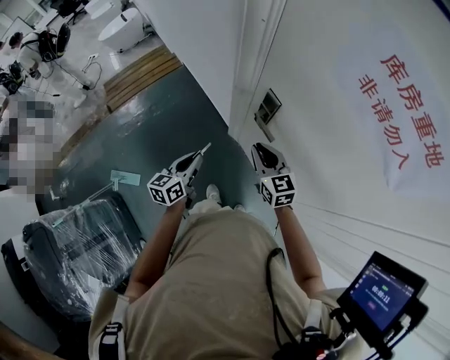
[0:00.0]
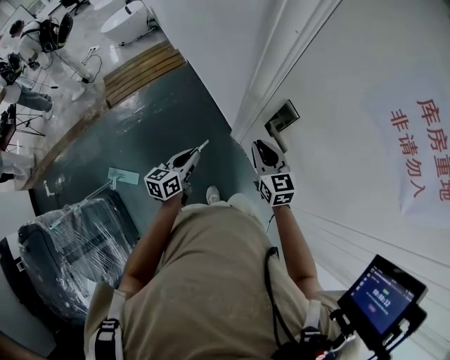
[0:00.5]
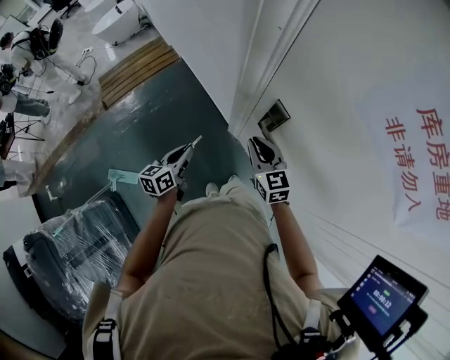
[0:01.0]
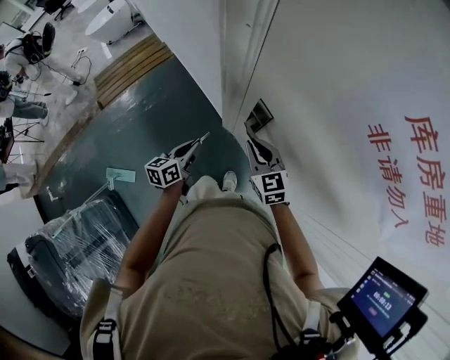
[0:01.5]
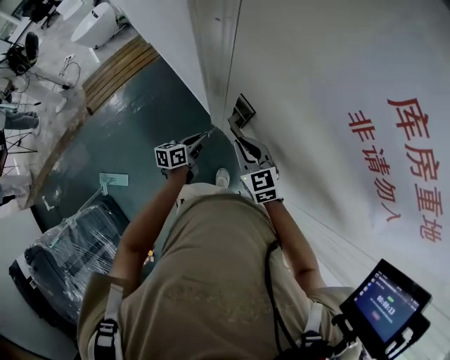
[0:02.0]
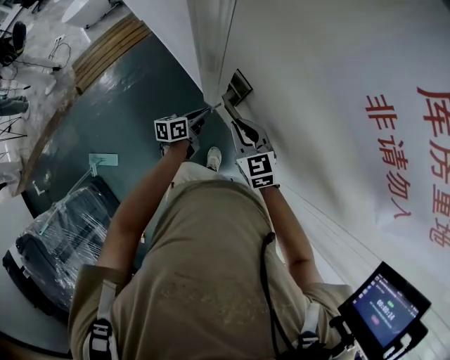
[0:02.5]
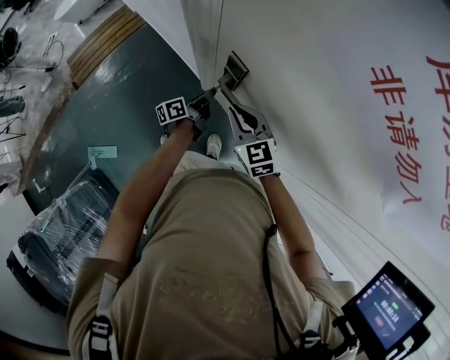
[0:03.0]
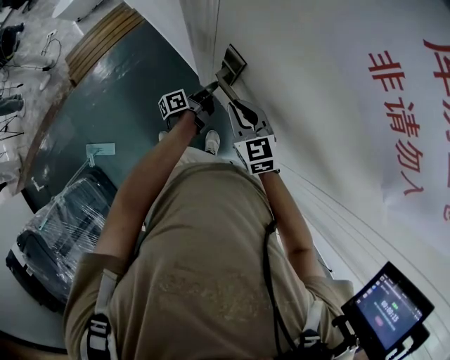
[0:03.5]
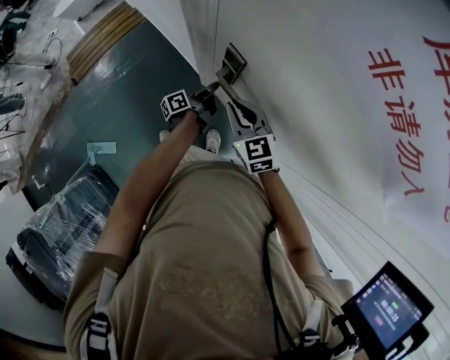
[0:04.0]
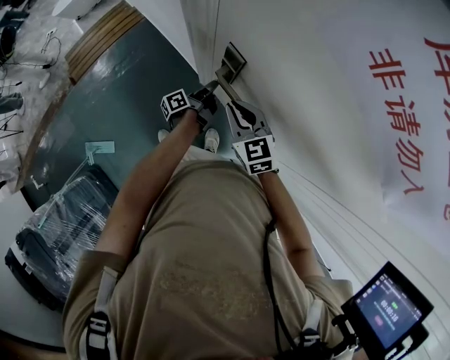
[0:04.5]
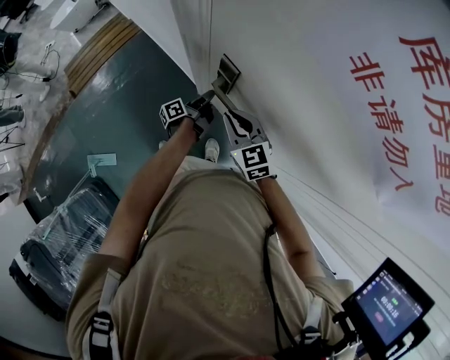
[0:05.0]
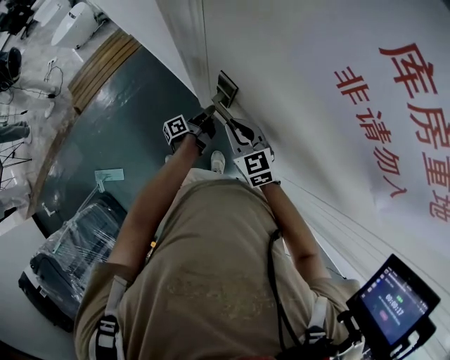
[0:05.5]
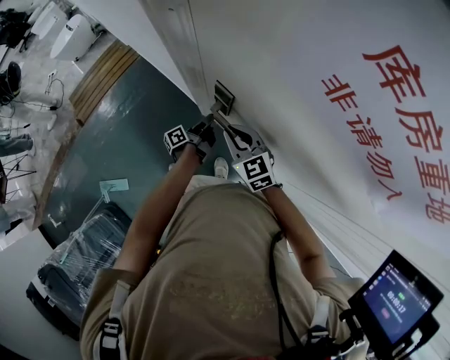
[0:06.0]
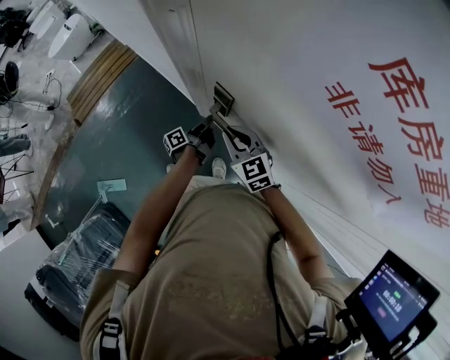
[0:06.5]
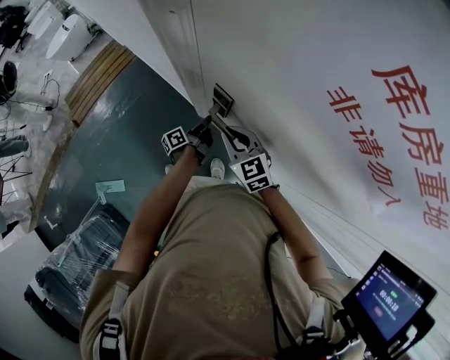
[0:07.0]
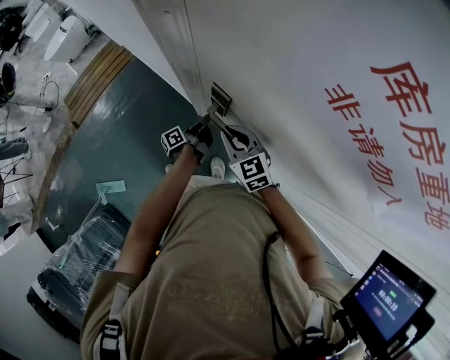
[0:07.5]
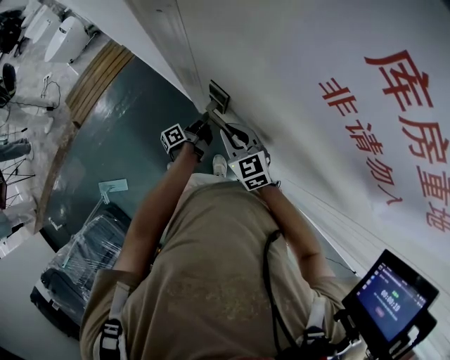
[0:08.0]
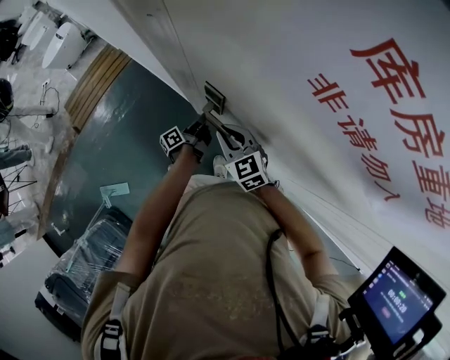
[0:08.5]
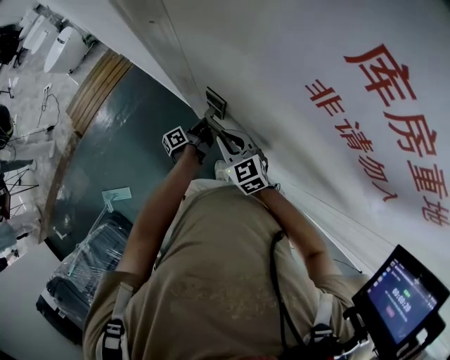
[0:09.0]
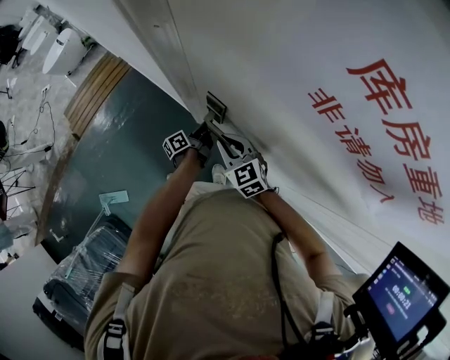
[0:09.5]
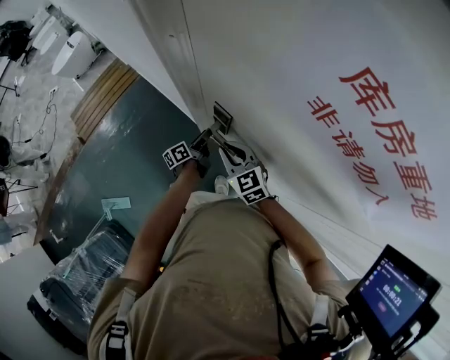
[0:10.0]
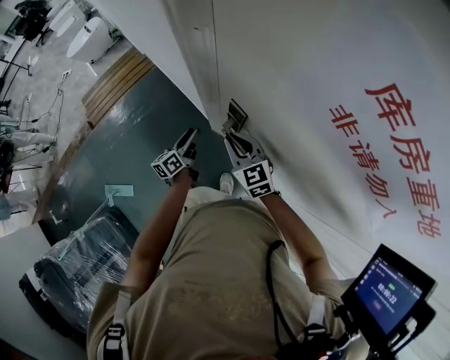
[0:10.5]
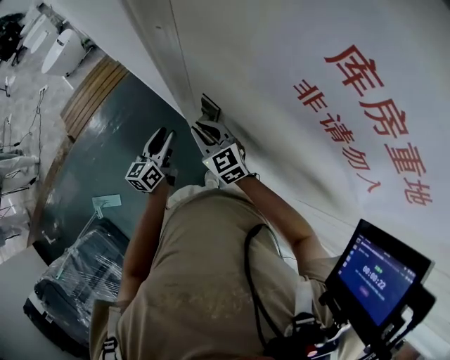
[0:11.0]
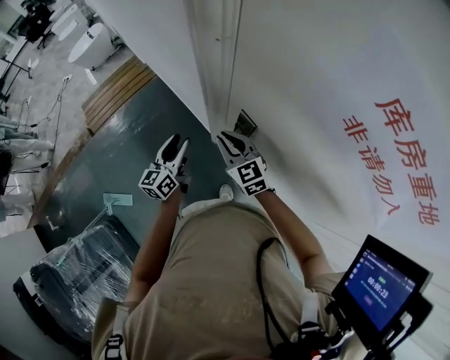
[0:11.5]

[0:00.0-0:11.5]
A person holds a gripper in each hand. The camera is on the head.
0:00.0 to 0:02.0: The right gripper goes some 5 cm forward, and moves some 5 cm to the left and comes back. The left gripper moves forward, downward and to the right, some 20 cm, and rotates roughly 20 degrees.
0:02.0 to 0:04.0: The left gripper is displaced to the right by some 5 cm, and rotates approximately 40 degrees.
0:04.0 to 0:06.0: The grippers make only small movements.
0:06.0 to 0:07.5: Both grippers stay put.
0:07.5 to 0:09.5: The grippers move only a little.
0:09.5 to 0:11.5: The left gripper goes about 25 cm upward and to the left, rotates around the line of its fingers by some 50 degrees, clockwise from behind, and opens. The right gripper heads to the left and upward, covering about 10 cm.

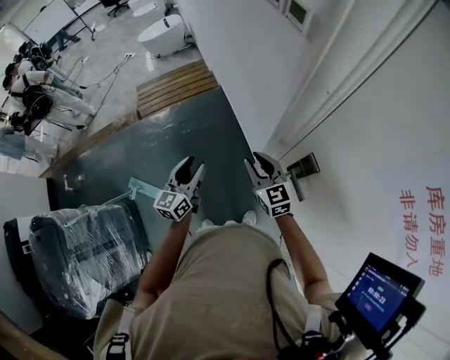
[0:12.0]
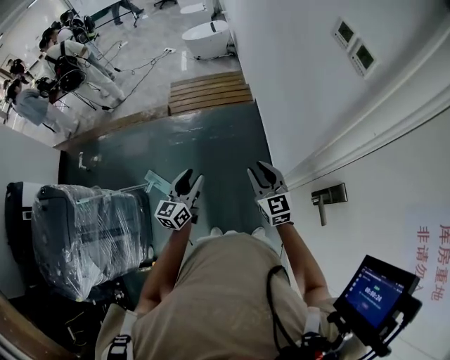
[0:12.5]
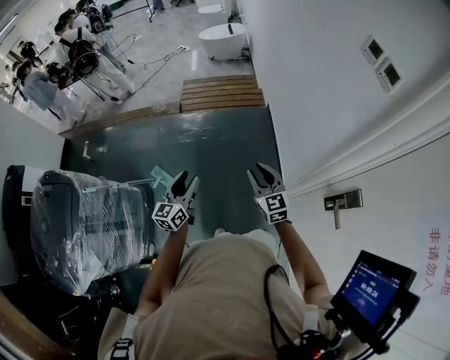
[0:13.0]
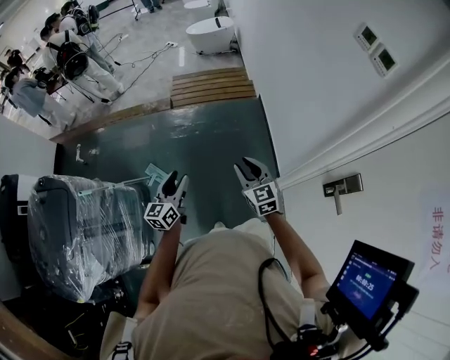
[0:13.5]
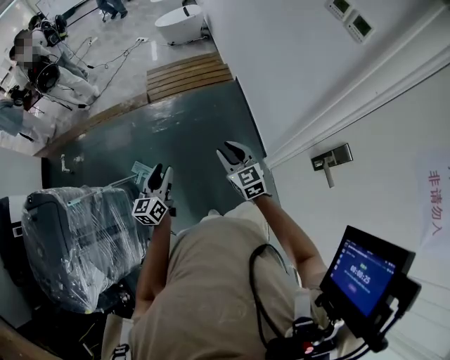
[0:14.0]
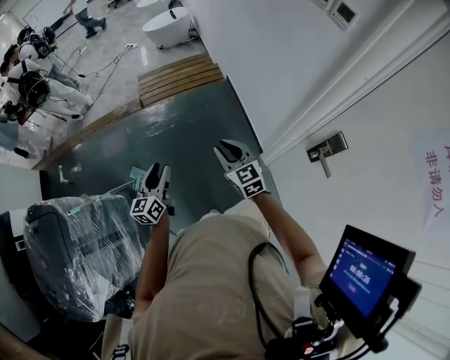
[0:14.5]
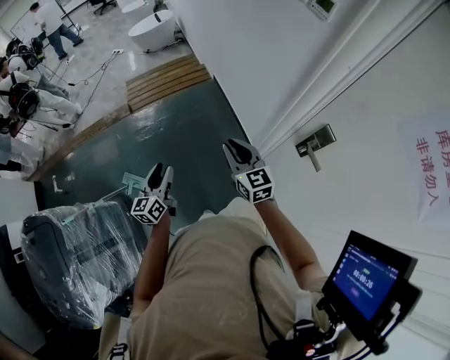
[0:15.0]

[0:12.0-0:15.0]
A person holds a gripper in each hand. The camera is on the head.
0:12.0 to 0:13.5: Both grippers travel together to the left, approximately 30 cm. The left gripper turns by about 20 degrees.
0:13.5 to 0:15.0: The grippers both shift to the right by some 10 cm.

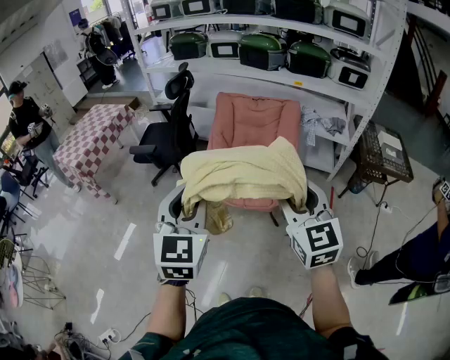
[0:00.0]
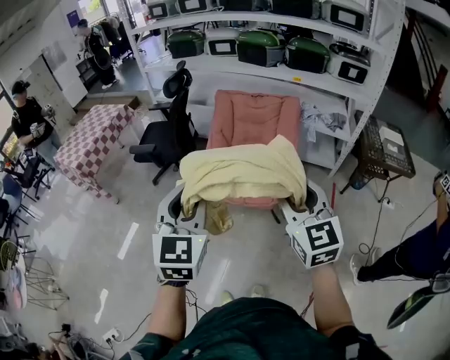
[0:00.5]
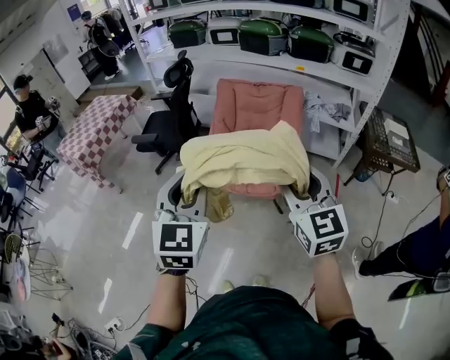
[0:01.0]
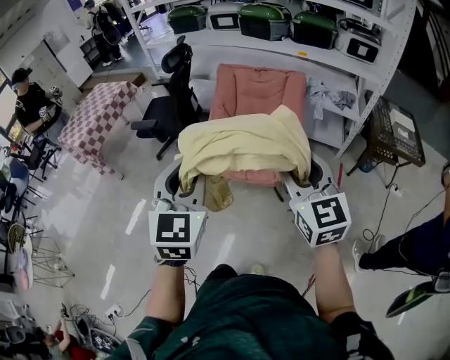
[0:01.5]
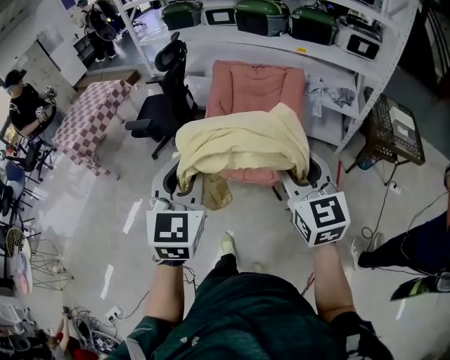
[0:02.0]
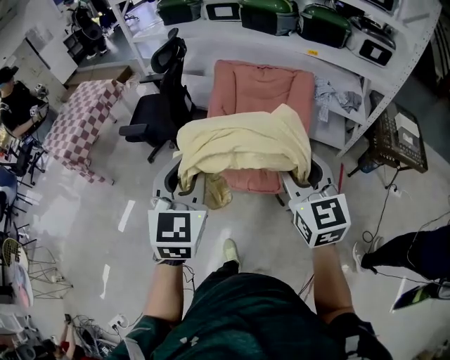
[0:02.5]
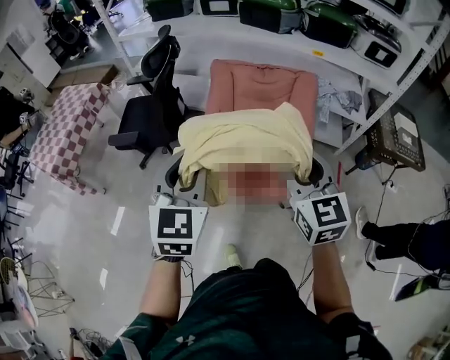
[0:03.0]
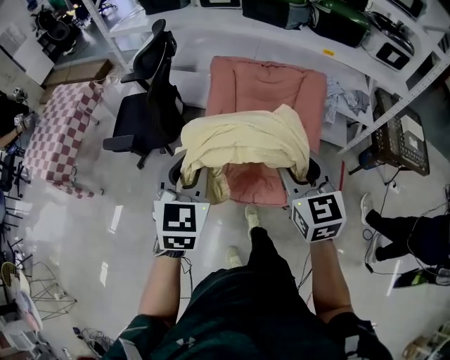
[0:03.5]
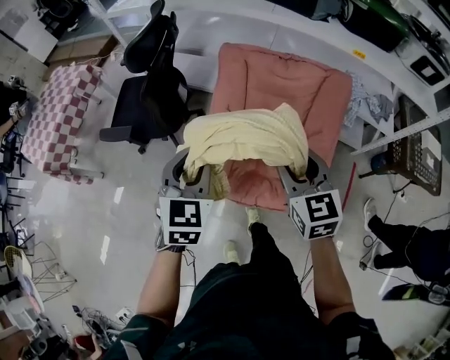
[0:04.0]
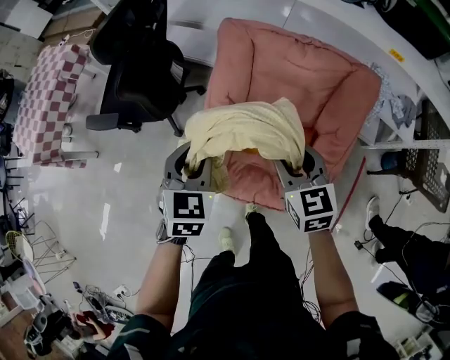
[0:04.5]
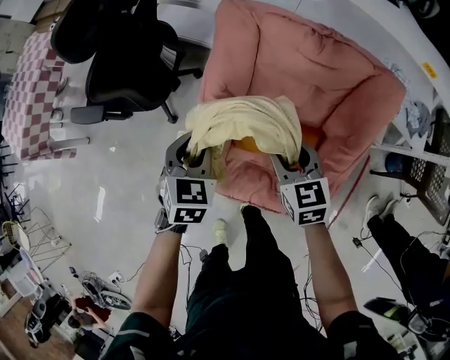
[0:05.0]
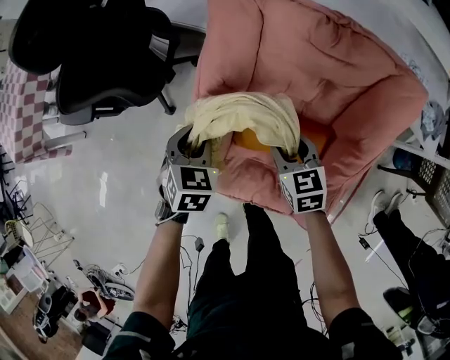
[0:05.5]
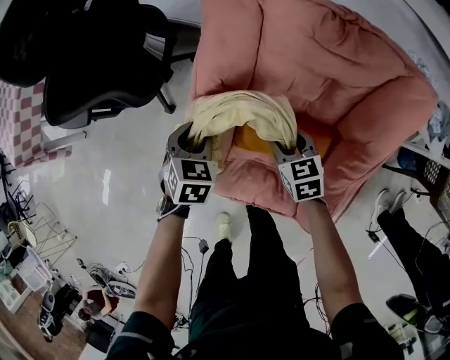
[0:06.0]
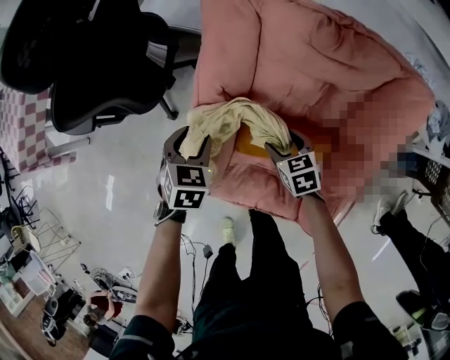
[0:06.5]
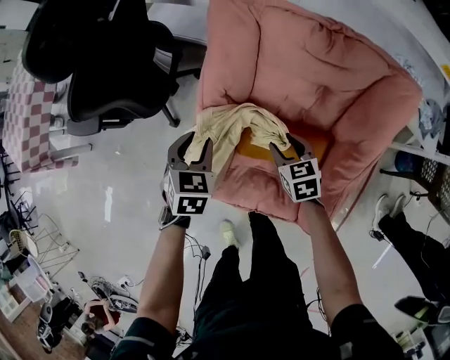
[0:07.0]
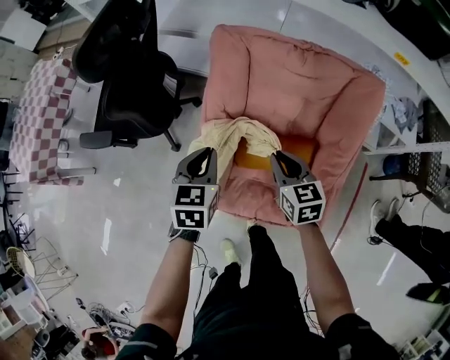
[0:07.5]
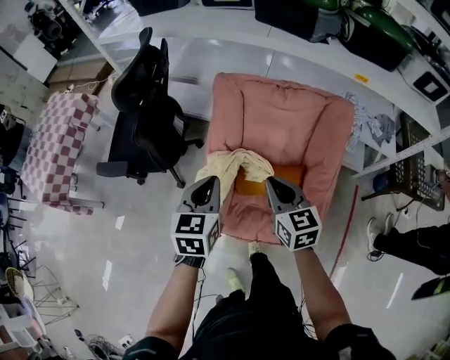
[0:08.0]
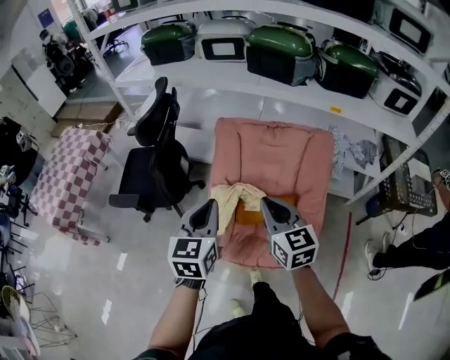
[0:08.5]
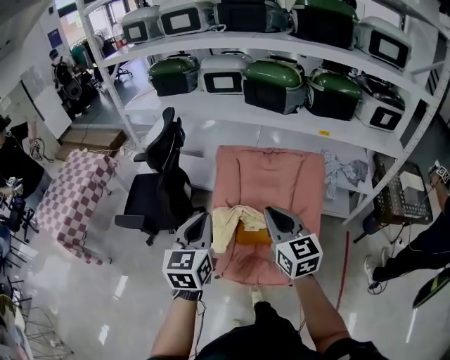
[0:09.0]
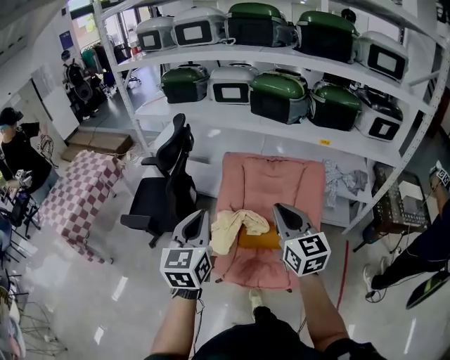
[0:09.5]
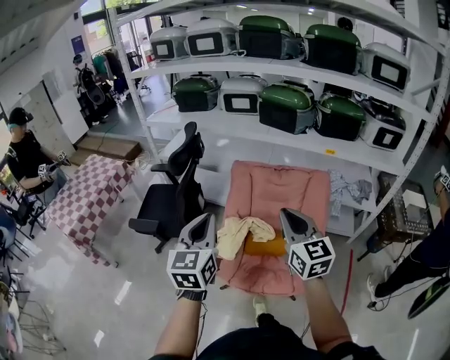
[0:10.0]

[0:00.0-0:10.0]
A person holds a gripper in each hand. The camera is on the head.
0:00.0 to 0:02.0: The right gripper shifts about 10 cm to the right and forward. The left gripper shifts roughly 5 cm to the right.
0:02.0 to 0:04.0: The two grippers travel together, forward, some 50 cm.
0:04.0 to 0:06.0: Both grippers move downward and forward, some 40 cm. The left gripper tips its fingers downward by approximately 30 degrees; the right gripper swivels about 30 degrees.
0:06.0 to 0:08.0: The right gripper is displaced upward by some 30 cm, rotates some 30 degrees, and closes; the left gripper heads upward and backward, covering roughly 35 cm, rotates about 30 degrees, and closes up.
0:08.0 to 0:10.0: Both grippers travel together upward and backward, approximately 30 cm. The right gripper turns by approximately 20 degrees. Meanwhile the left gripper rotates approximately 20 degrees.

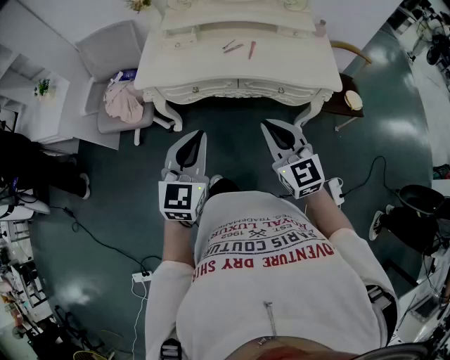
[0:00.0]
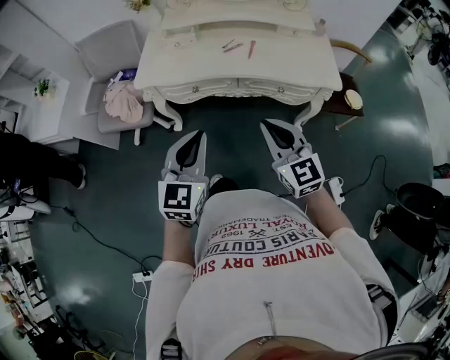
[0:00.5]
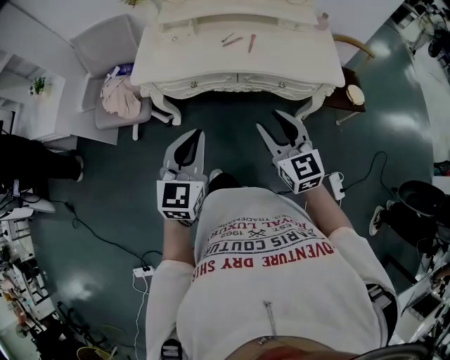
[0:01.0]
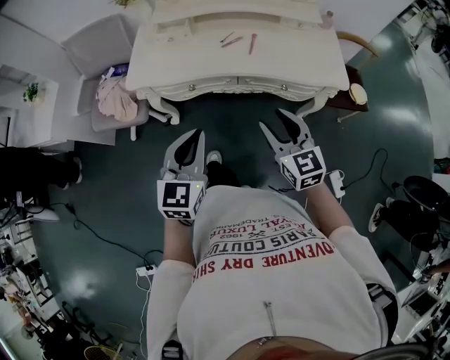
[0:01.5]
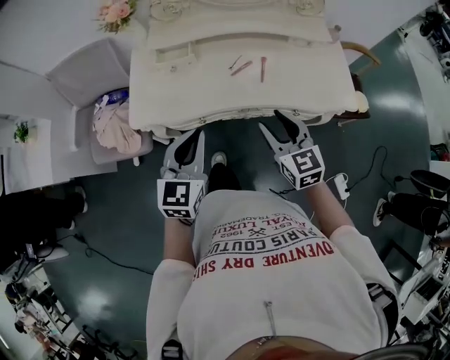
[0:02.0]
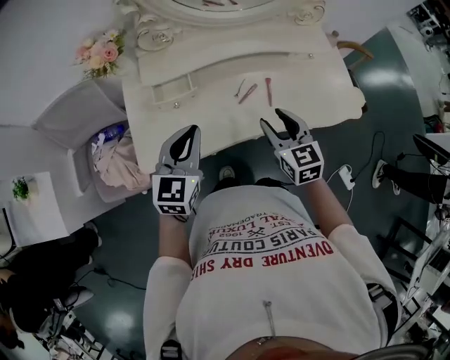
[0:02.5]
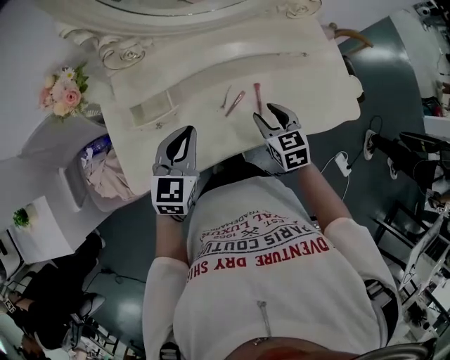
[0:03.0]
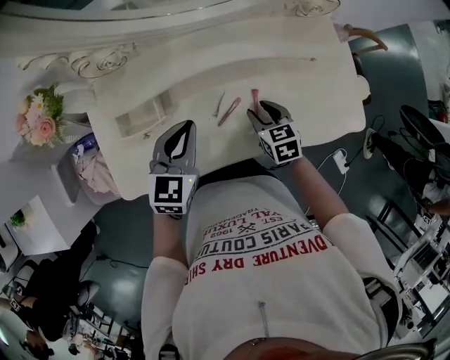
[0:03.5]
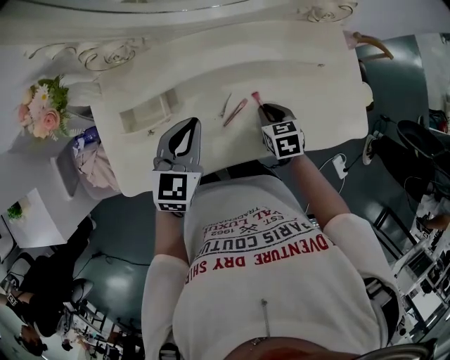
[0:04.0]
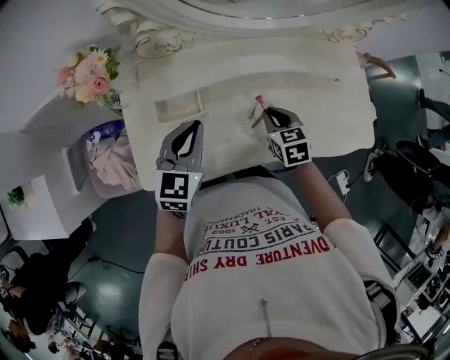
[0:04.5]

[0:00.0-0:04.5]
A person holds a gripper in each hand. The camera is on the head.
0:00.0 to 0:02.0: Both grippers move forward, about 25 cm. The right gripper opens up.
0:02.0 to 0:04.5: The left gripper shifts about 30 cm forward, while the right gripper heads forward and downward, covering roughly 30 cm, swivels some 30 degrees, and closes.
